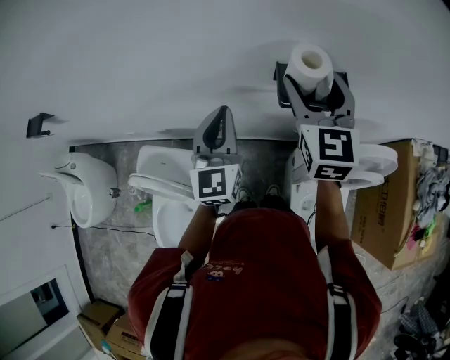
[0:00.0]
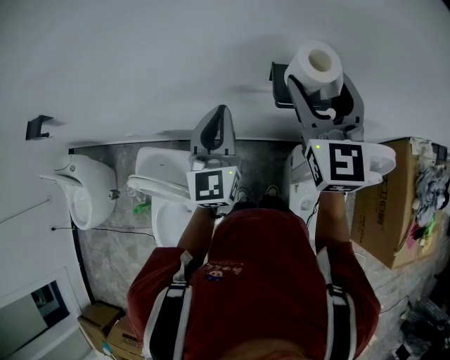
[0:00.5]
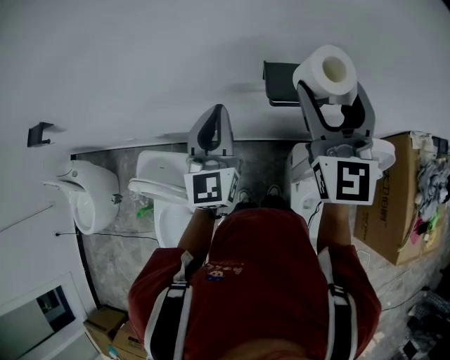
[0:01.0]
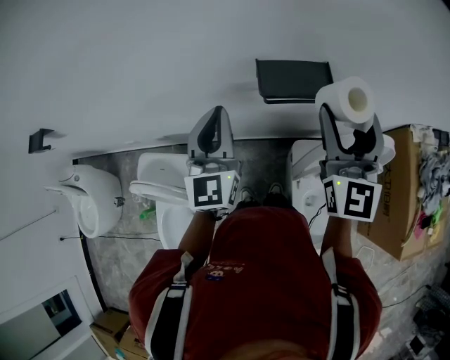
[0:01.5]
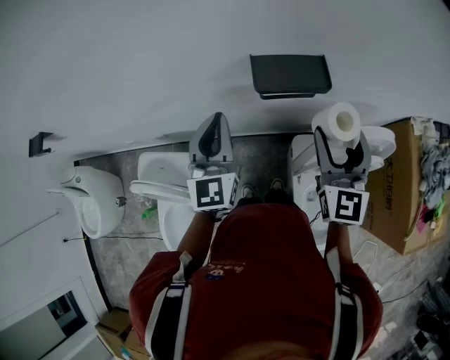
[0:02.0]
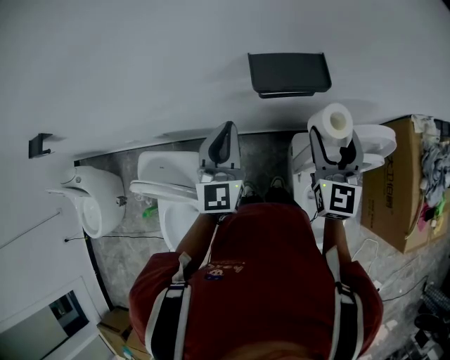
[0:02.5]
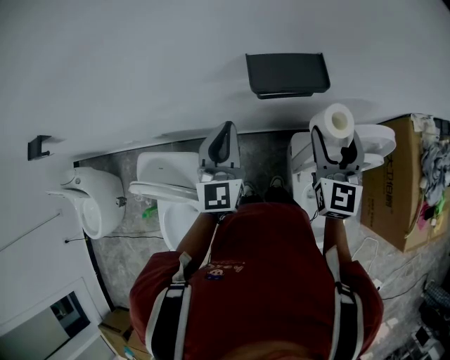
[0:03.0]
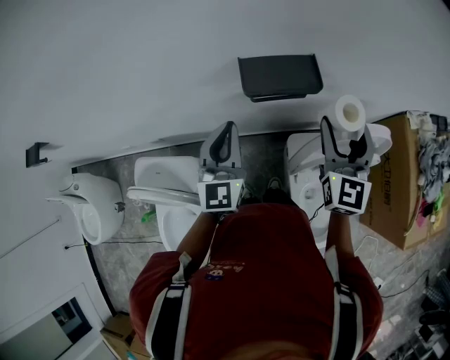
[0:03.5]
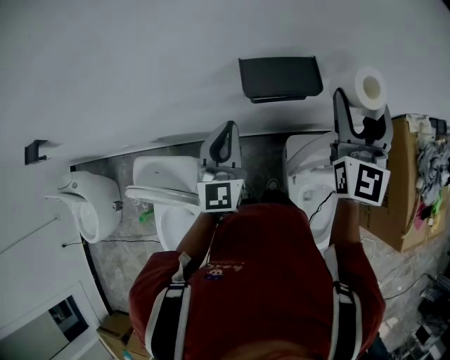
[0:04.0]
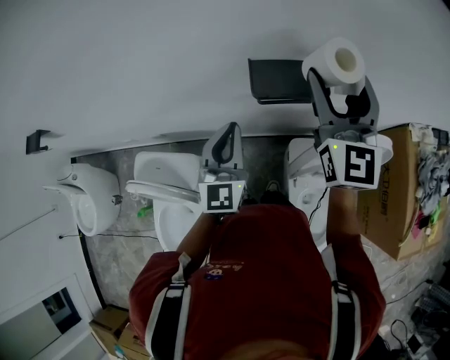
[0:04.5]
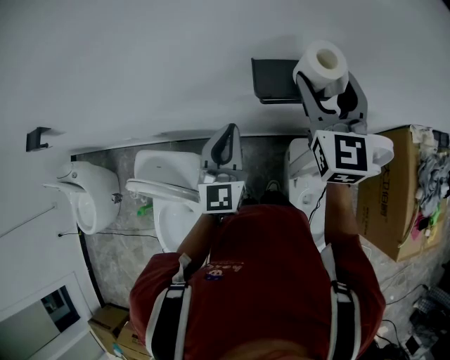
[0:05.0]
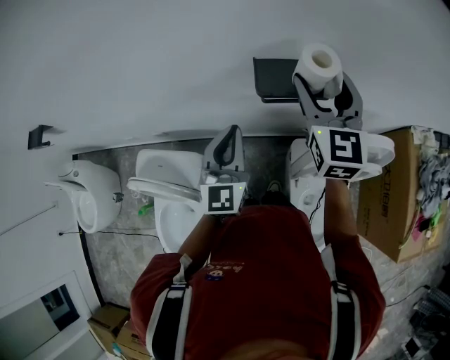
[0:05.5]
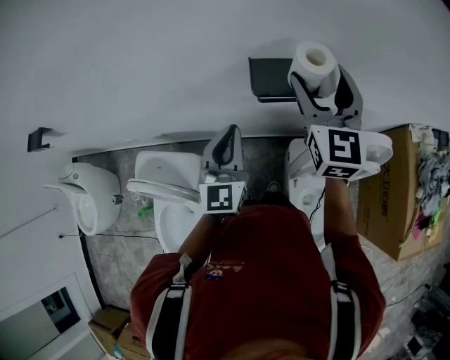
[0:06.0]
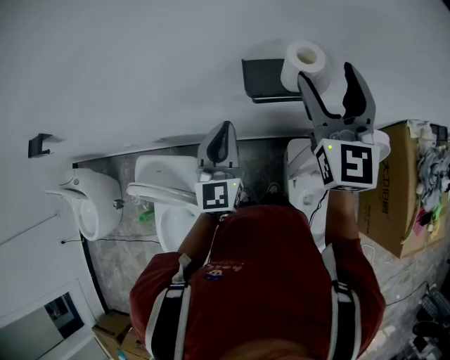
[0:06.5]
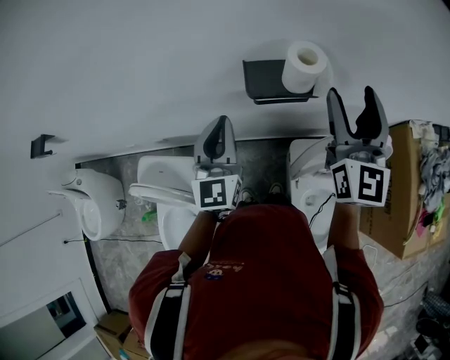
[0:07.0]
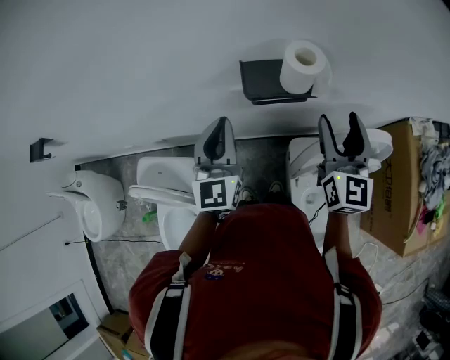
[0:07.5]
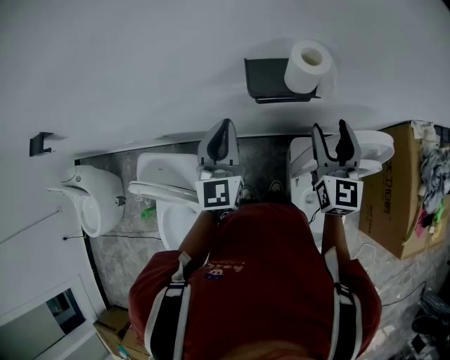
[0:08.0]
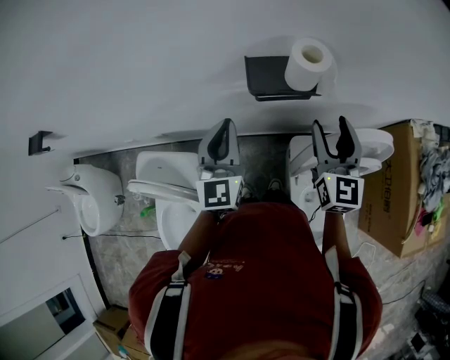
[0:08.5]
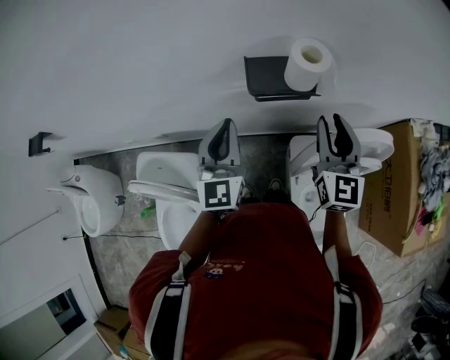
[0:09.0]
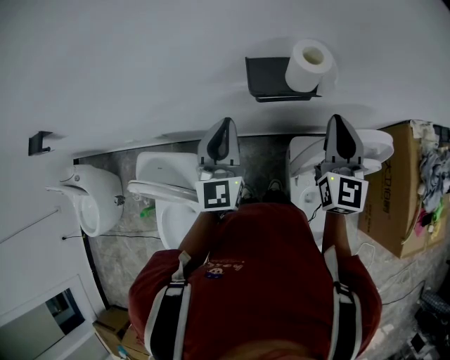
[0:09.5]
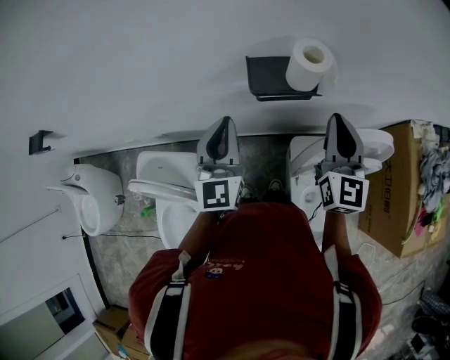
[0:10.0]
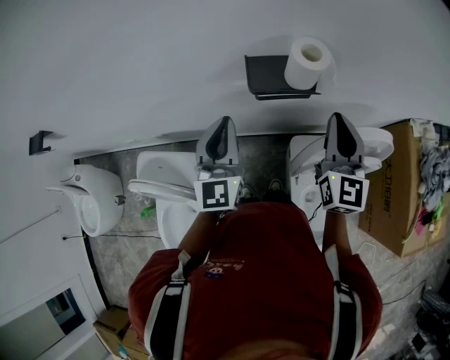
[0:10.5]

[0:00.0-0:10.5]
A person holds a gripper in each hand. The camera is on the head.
0:00.0 to 0:02.0: The right gripper moves backward, to the right and downward, approximately 20 cm.
0:02.0 to 0:04.0: The left gripper ends up about 5 cm from where it was. The right gripper moves upward and forward, some 10 cm.
0:04.0 to 0:06.5: The right gripper travels to the left by about 5 cm.
0:06.5 to 0:08.5: The right gripper travels downward by about 15 cm.
0:08.5 to 0:10.5: The right gripper closes.

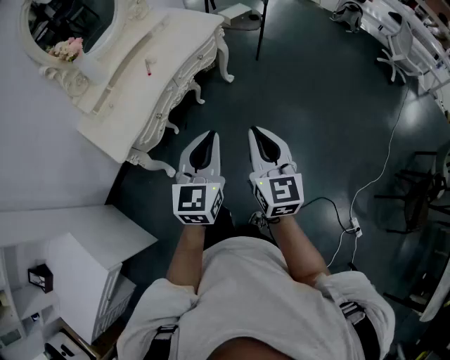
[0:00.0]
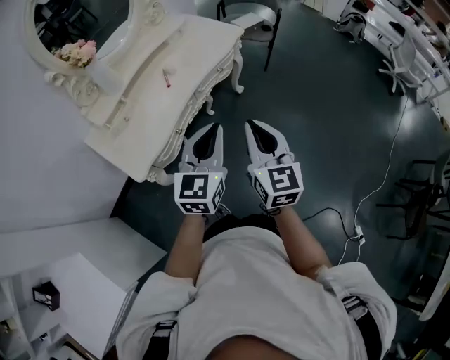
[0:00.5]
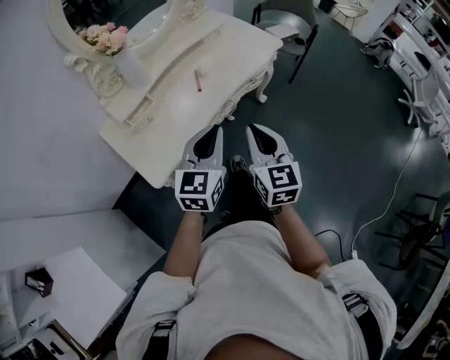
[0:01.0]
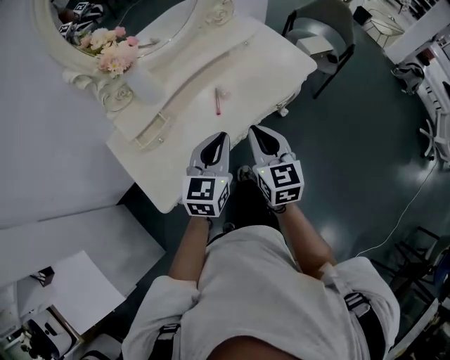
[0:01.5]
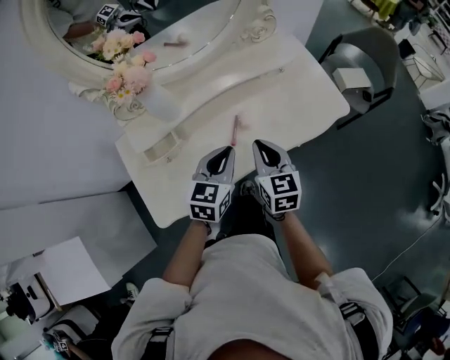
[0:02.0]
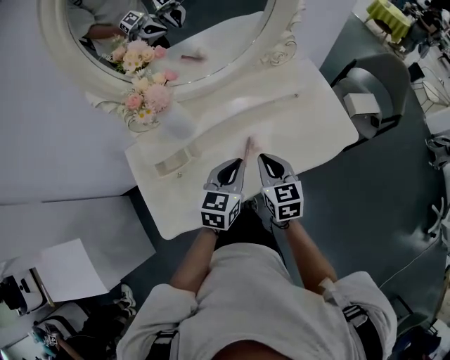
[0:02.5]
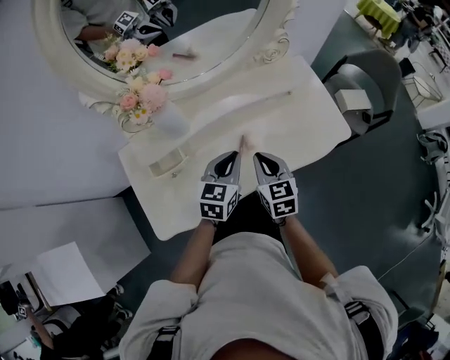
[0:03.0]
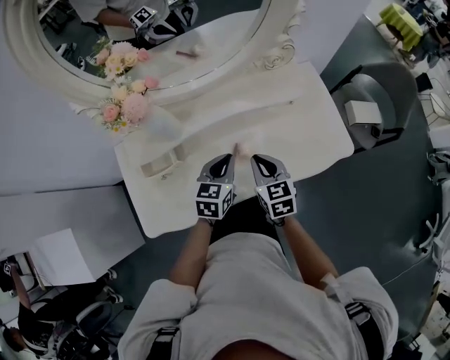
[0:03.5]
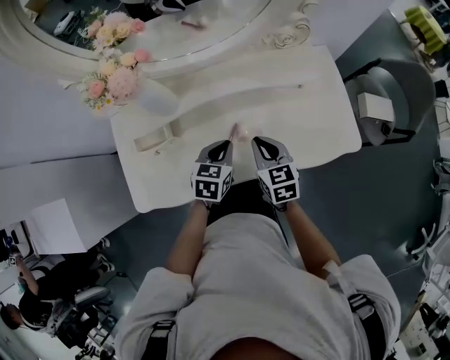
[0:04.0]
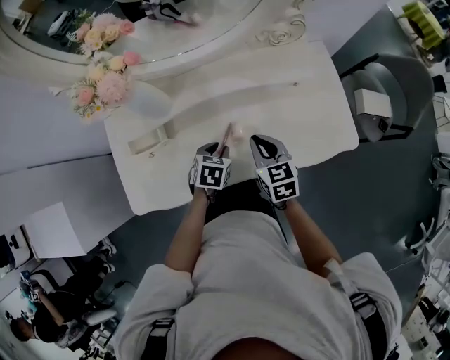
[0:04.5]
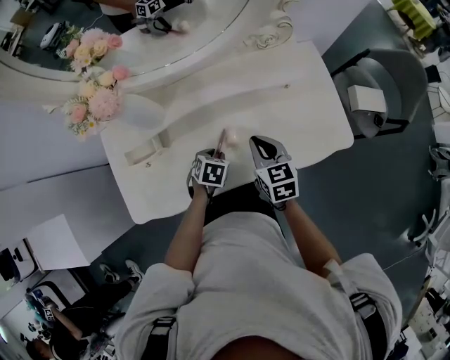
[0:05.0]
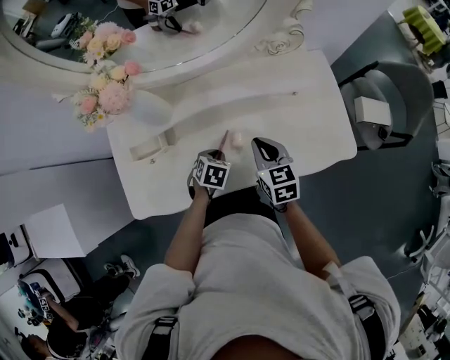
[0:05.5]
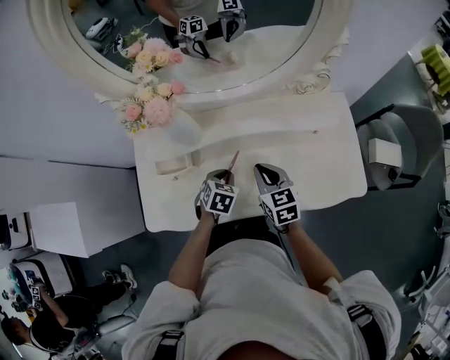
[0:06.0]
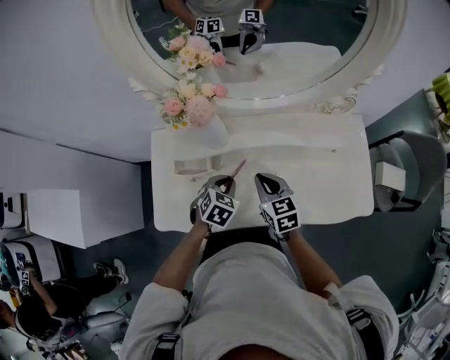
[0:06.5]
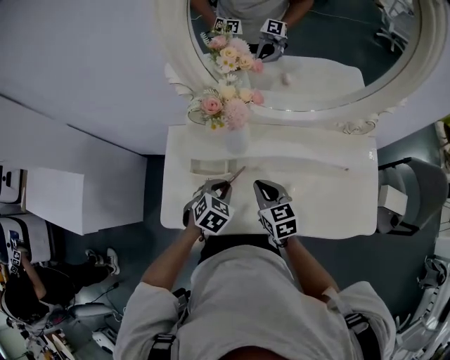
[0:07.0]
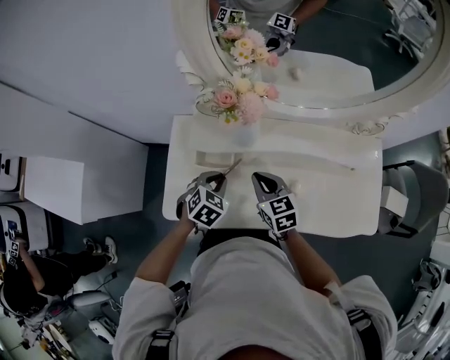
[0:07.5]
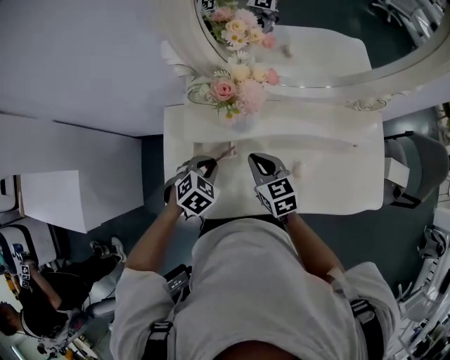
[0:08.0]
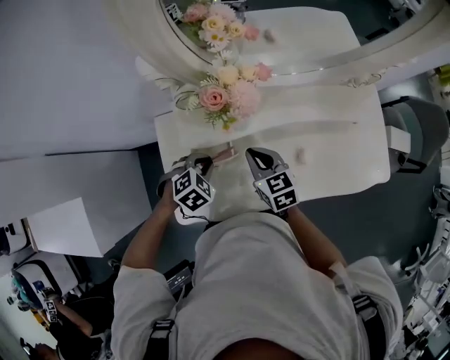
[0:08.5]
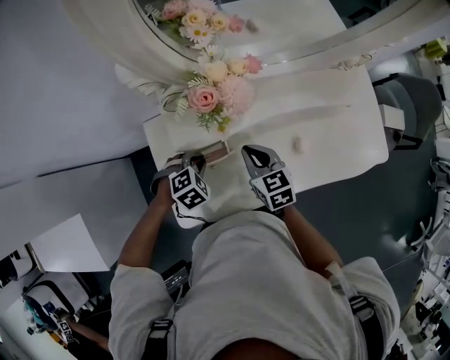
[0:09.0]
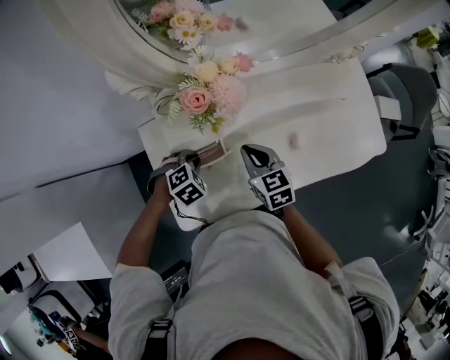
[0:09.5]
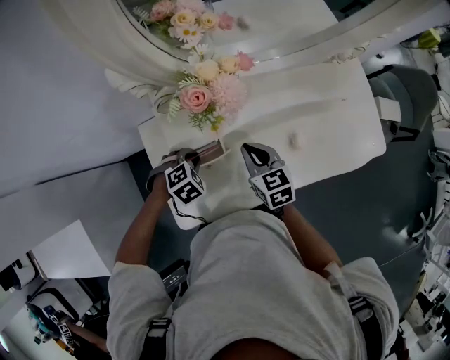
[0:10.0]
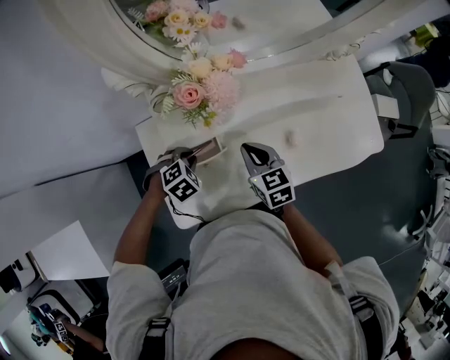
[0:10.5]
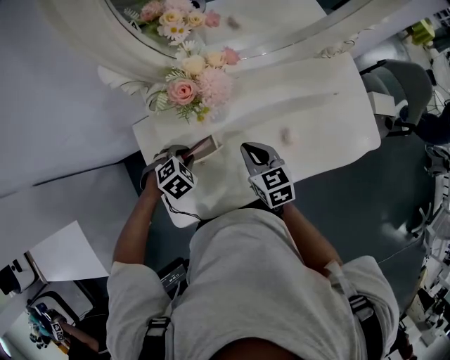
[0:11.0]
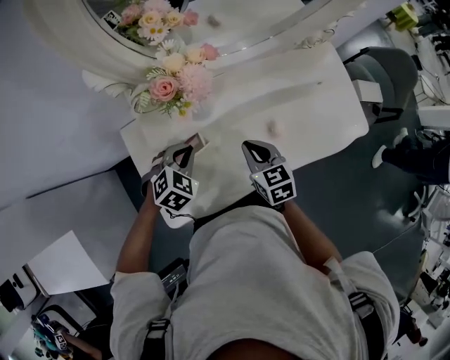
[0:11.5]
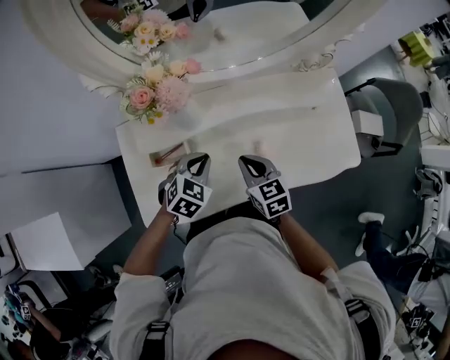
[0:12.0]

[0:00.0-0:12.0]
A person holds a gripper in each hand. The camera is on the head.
0:00.0 to 0:02.0: The two grippers travel together, approximately 60 cm. The right gripper rotates roughly 40 degrees; the left gripper swivels about 30 degrees.
0:02.0 to 0:04.0: The left gripper travels downward and forward by approximately 15 cm, and changes its angle by about 20 degrees. The right gripper moves forward and downward, some 10 cm, and swivels roughly 20 degrees.
0:04.0 to 0:06.0: The left gripper travels to the left by approximately 5 cm, while the right gripper ends up some 5 cm from where it was.
0:06.0 to 0:08.0: Both grippers travel together to the left, about 20 cm.
0:08.0 to 0:10.0: The left gripper moves downward, approximately 5 cm, and swivels some 30 degrees.
0:10.0 to 0:12.0: The right gripper changes place by about 10 cm. Meanwhile the left gripper ends up approximately 20 cm from where it was, and swivels about 30 degrees.

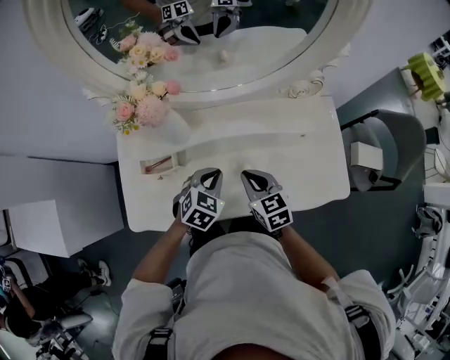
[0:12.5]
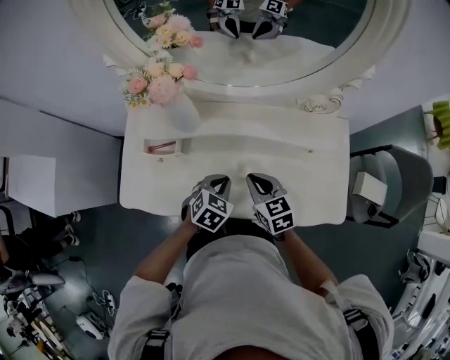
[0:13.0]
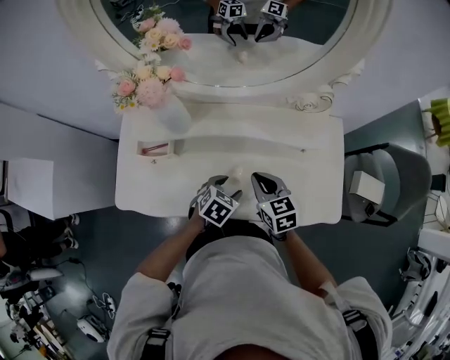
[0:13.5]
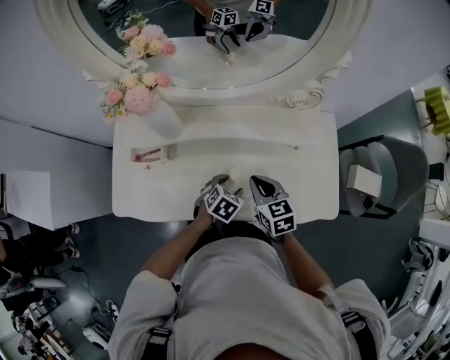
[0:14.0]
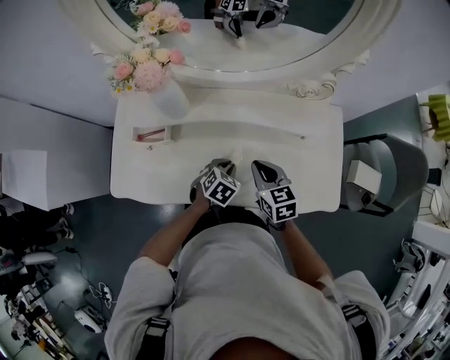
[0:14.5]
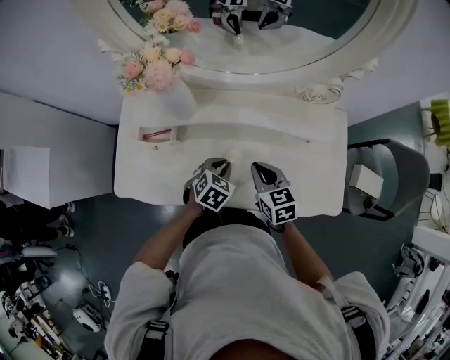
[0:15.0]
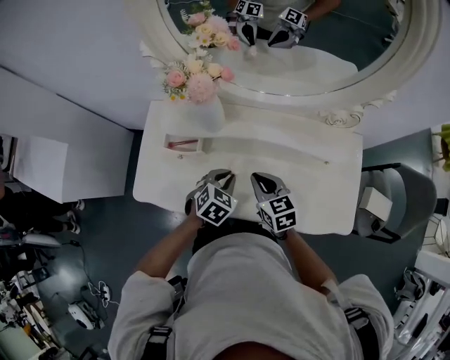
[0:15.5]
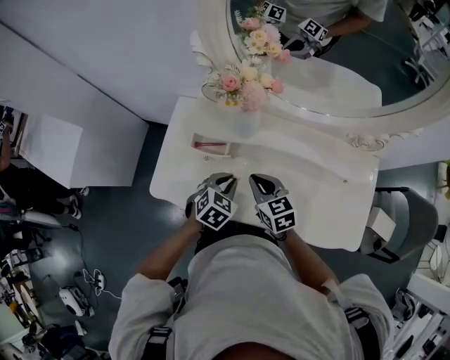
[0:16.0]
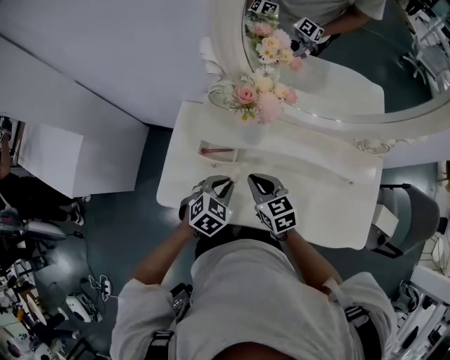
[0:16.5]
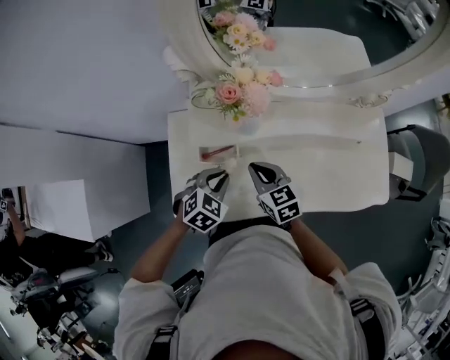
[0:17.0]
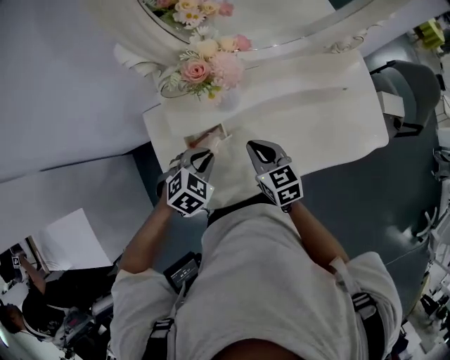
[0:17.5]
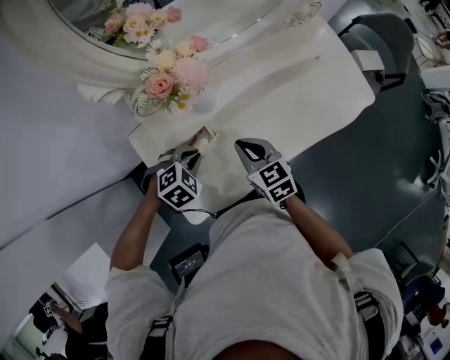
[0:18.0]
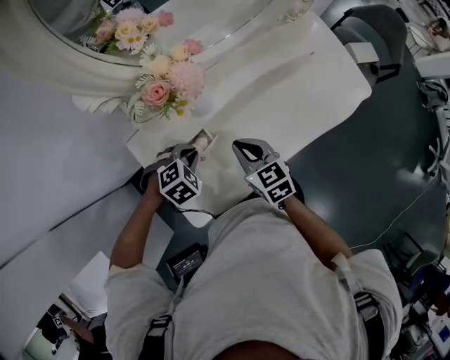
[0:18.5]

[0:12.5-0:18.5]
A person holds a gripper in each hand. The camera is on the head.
0:12.5 to 0:14.5: The left gripper moves downward and to the right, roughly 15 cm, and opens and closes again, while the right gripper heads to the right, covering roughly 5 cm.
0:14.5 to 0:16.5: The right gripper goes some 25 cm to the left, while the left gripper heads to the left and upward, covering about 25 cm.
0:16.5 to 0:18.5: The left gripper ends up roughly 10 cm from where it was, and rolls clockwise, seen from behind, by approximately 60 degrees, while the right gripper rotates some 40 degrees.
